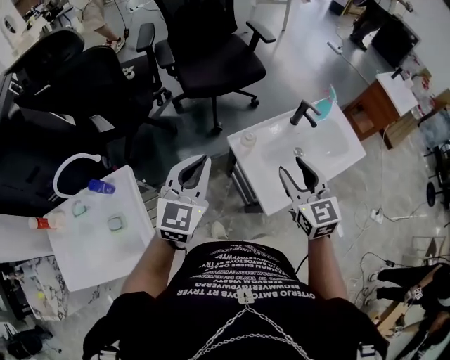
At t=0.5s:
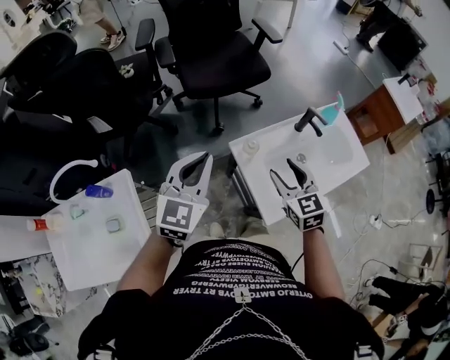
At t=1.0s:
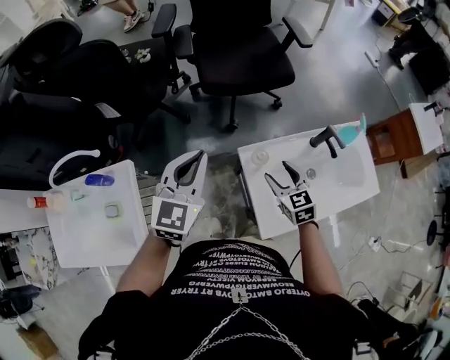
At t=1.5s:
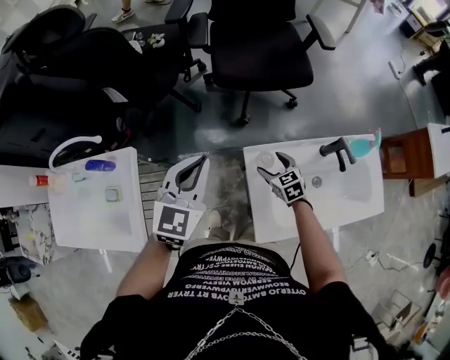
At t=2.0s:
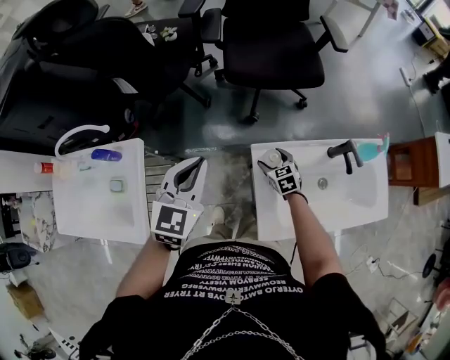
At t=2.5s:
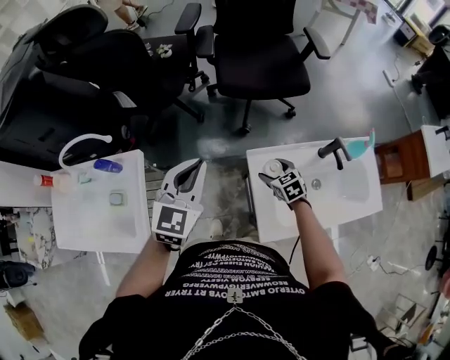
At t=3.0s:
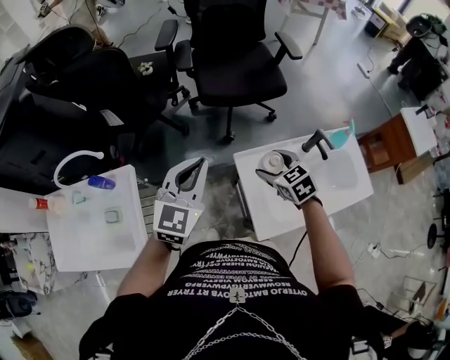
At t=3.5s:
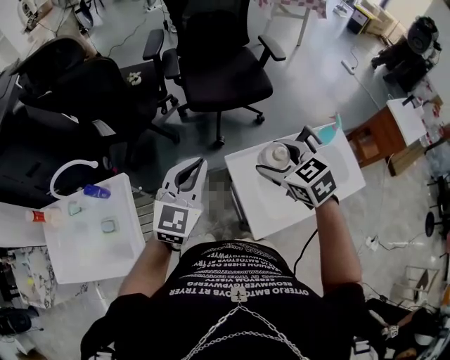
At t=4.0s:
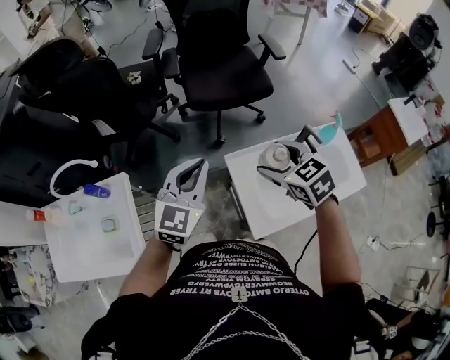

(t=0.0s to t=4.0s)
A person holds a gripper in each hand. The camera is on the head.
t=0.0s - t=2.0s: The left gripper ends up roughly 10 cm from where it was, and rotates about 20 degrees. The right gripper is displaced downward by some 35 cm, changes its angle by about 40 degrees, and opens.
t=2.0s - t=4.0s: The right gripper goes about 35 cm upward, while the left gripper shifts about 5 cm upward.

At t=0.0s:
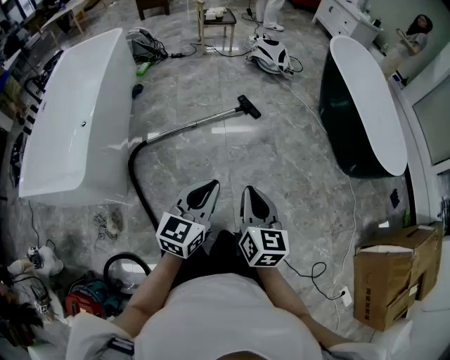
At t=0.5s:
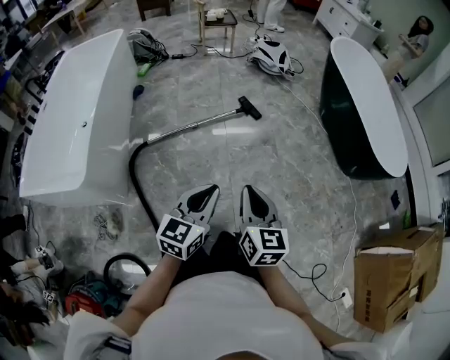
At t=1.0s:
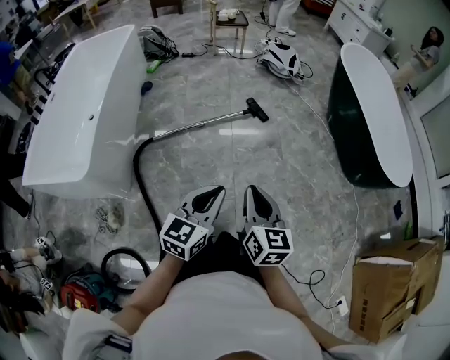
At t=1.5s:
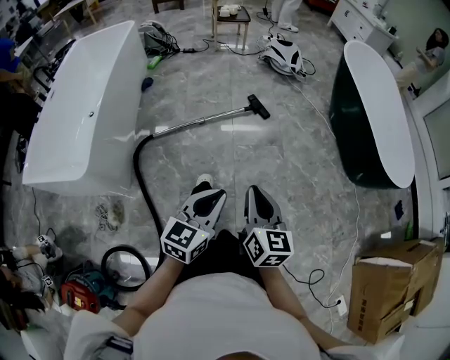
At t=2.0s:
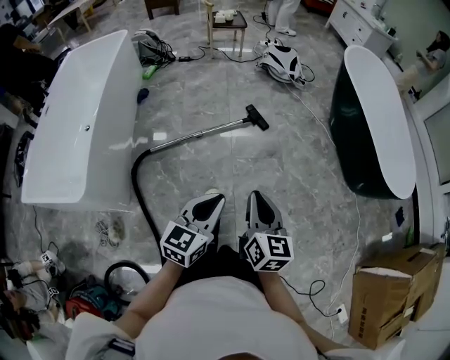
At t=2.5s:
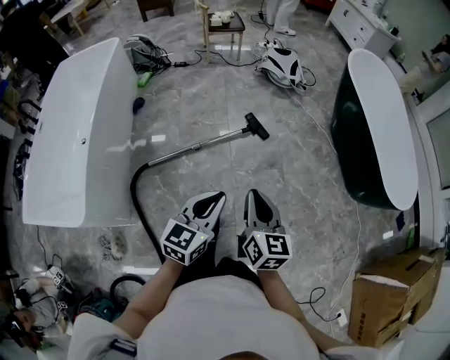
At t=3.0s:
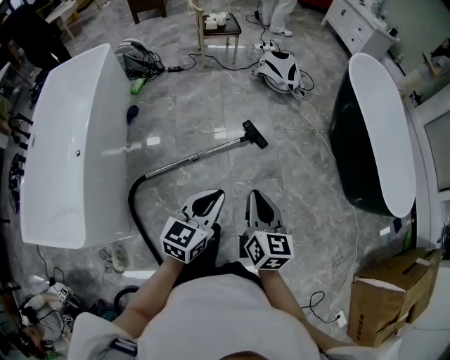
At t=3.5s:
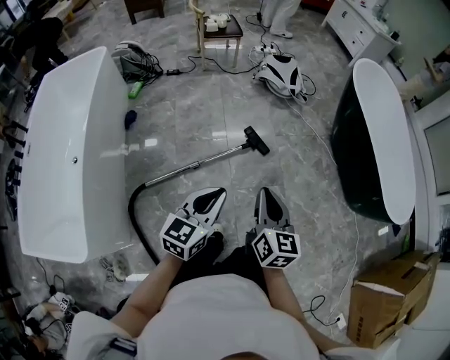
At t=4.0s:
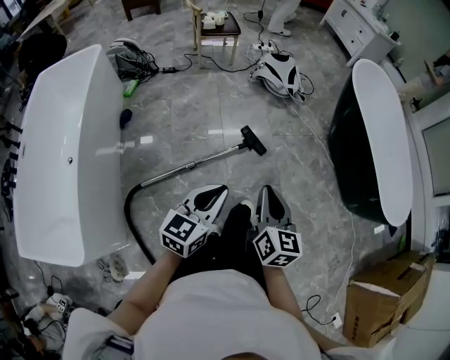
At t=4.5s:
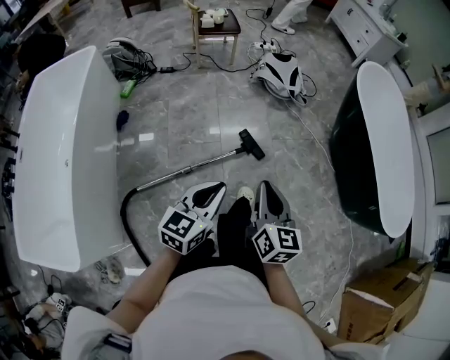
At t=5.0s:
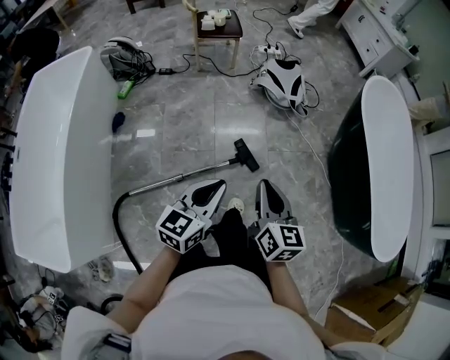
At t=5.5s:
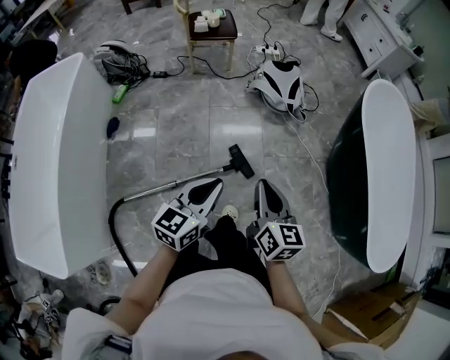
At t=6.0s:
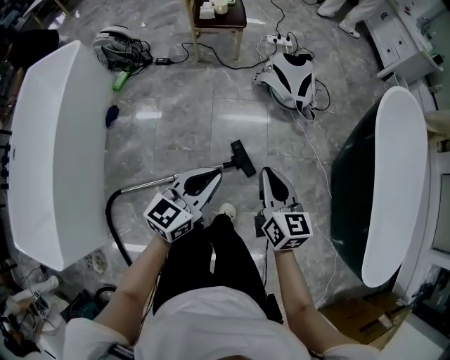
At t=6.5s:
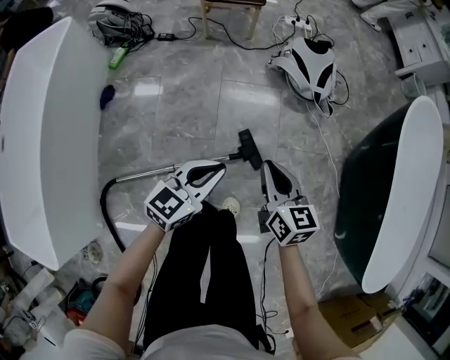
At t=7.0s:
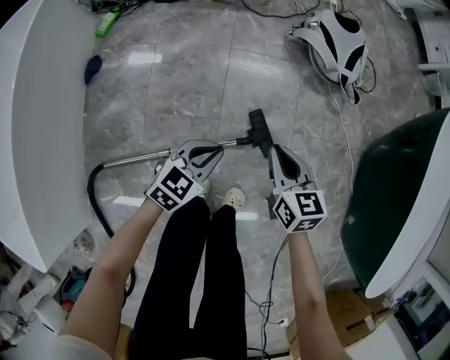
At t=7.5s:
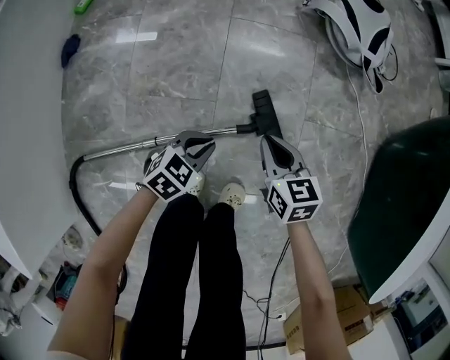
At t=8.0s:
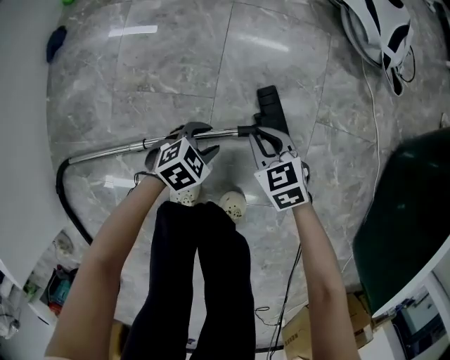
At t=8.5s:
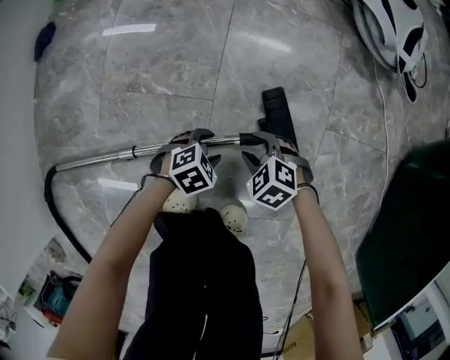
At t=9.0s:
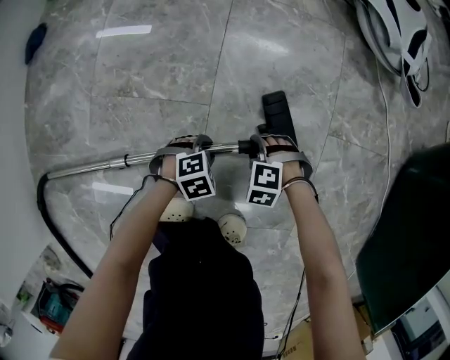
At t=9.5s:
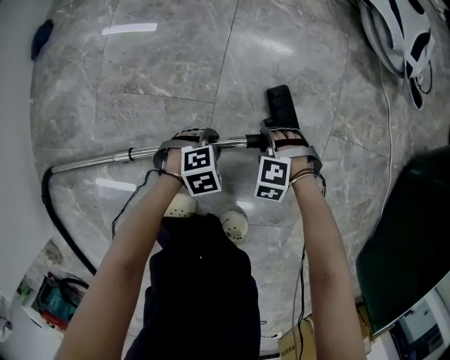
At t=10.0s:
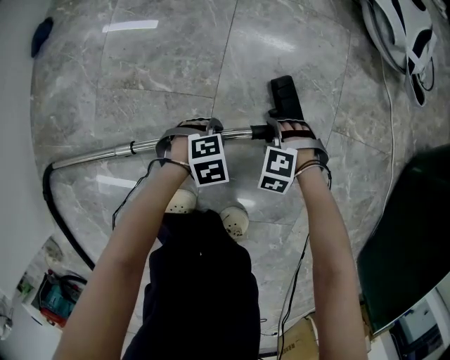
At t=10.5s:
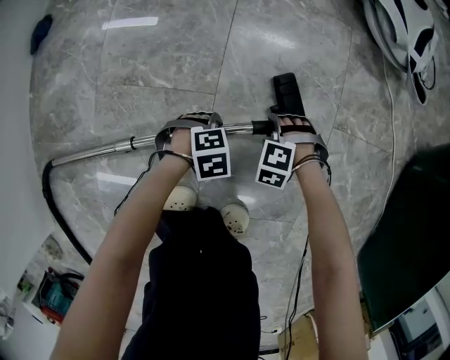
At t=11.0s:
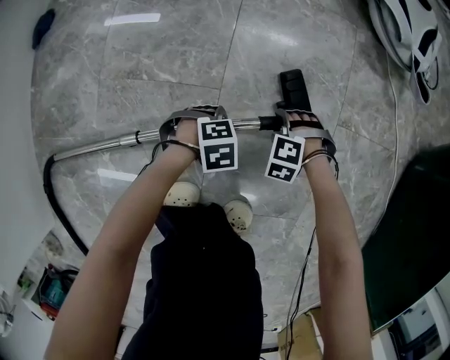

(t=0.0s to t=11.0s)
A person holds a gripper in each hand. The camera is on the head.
t=0.0s - t=2.0s: Both grippers move forward, about 10 cm.
t=2.0s - t=3.5s: The right gripper heads forward, covering about 25 cm; the left gripper heads forward and to the left, covering some 30 cm.
t=3.5s - t=5.5s: Both grippers travel together forward, approximately 30 cm.
t=5.5s - t=7.5s: Both grippers travel together downward, some 50 cm. The left gripper angles its fingers downward, by roughly 30 degrees; the right gripper turns by some 40 degrees.
t=7.5s - t=9.0s: Both grippers travel together downward, approximately 35 cm. The left gripper turns by approximately 30 degrees, and opens up, while the right gripper twists some 80 degrees counterclockwise, seen from behind, and opens up.
t=9.0s - t=11.0s: The right gripper ends up about 5 cm from where it was.

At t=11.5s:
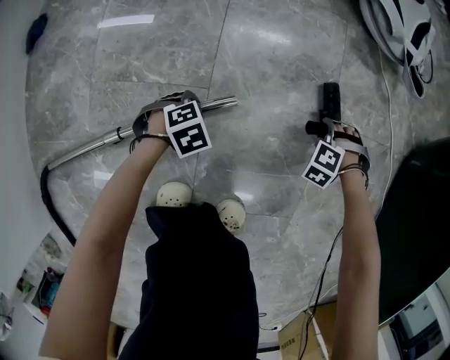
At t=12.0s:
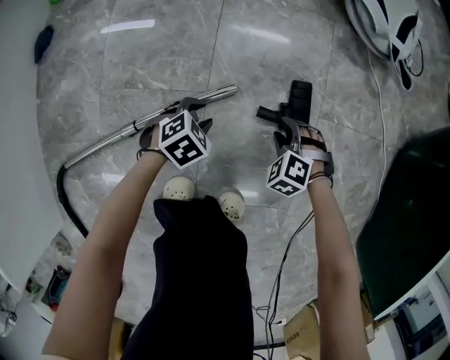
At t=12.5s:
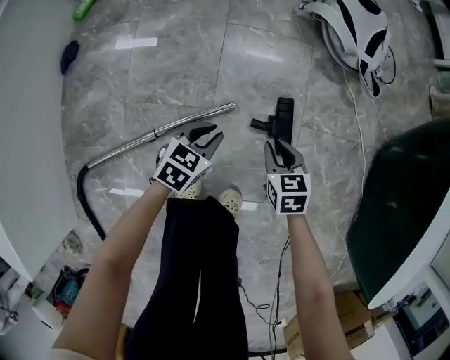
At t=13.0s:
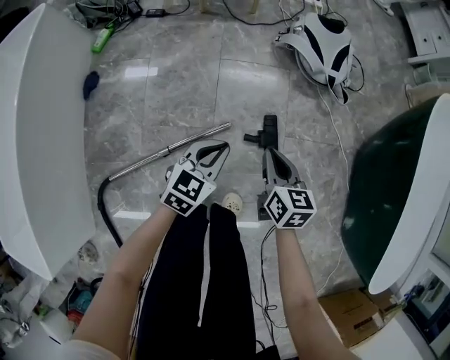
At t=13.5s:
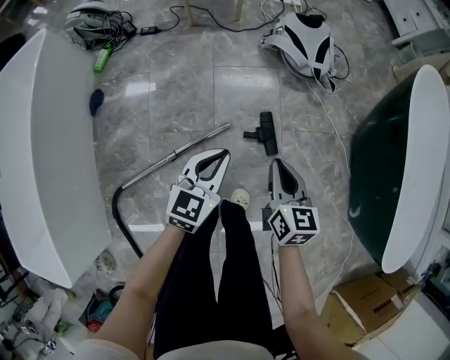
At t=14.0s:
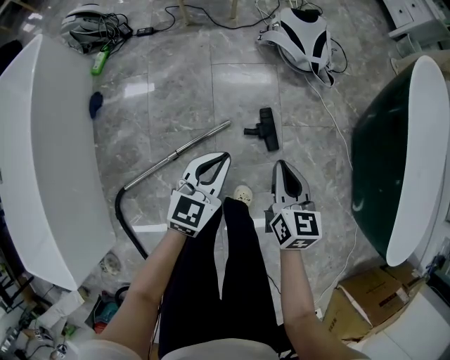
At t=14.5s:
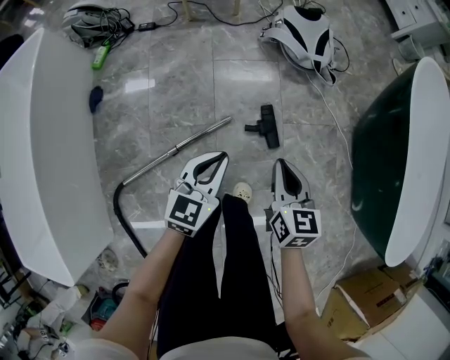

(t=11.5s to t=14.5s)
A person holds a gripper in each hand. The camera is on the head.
t=11.5s - t=13.0s: The two grippers go some 50 cm upward. The left gripper tips its fingers upward by some 50 degrees, and closes; the right gripper rolls clockwise, seen from behind, by about 100 degrees, and closes its fingers.
t=13.0s - t=14.5s: The two grippers go some 15 cm upward and backward.

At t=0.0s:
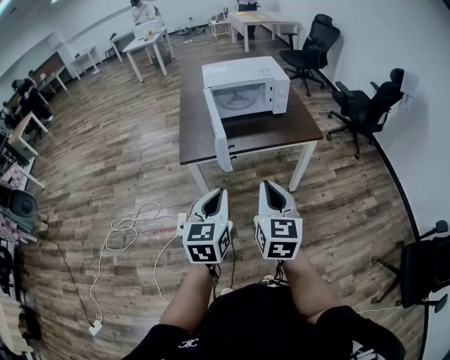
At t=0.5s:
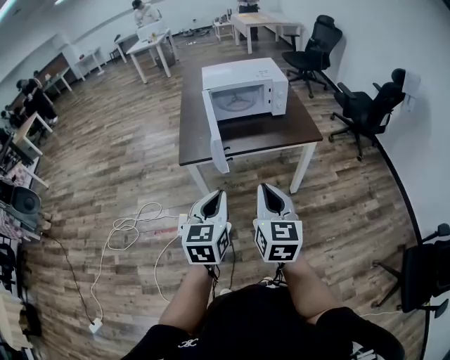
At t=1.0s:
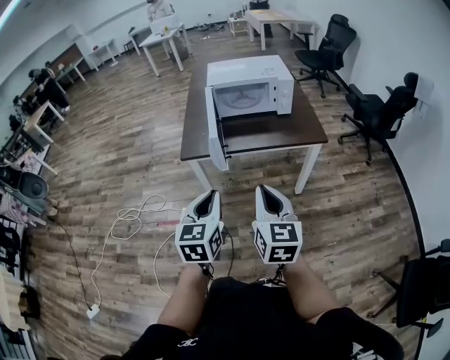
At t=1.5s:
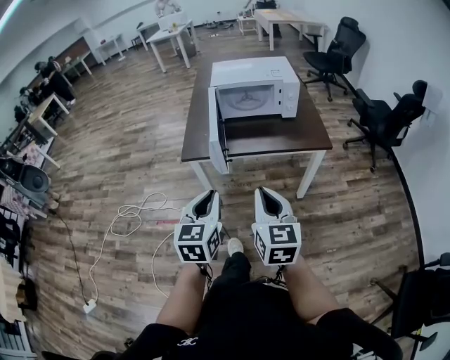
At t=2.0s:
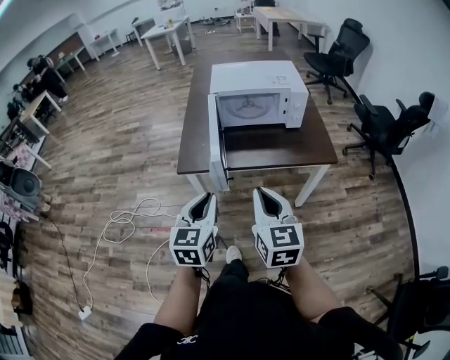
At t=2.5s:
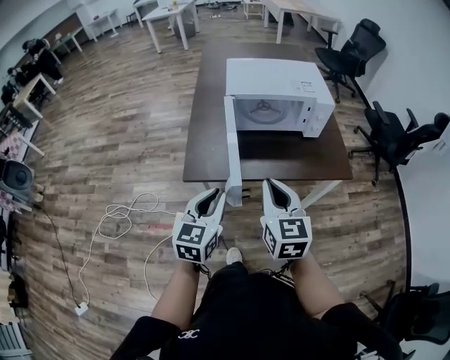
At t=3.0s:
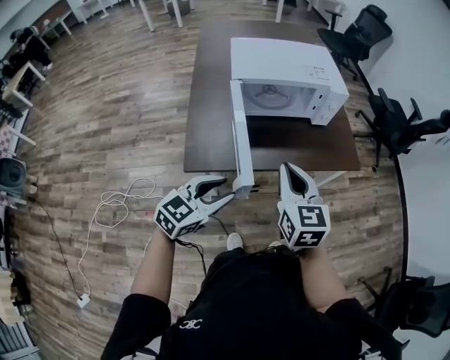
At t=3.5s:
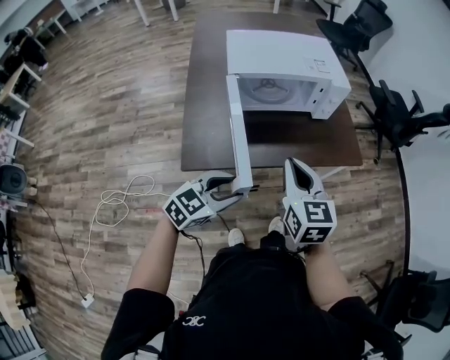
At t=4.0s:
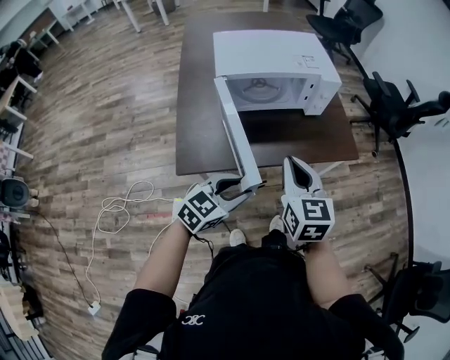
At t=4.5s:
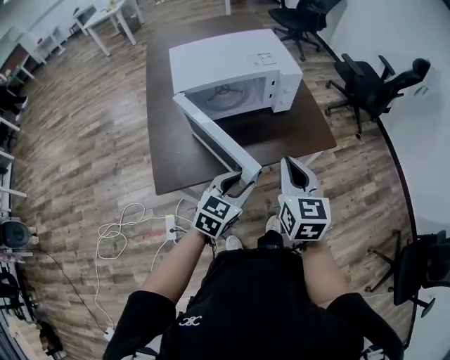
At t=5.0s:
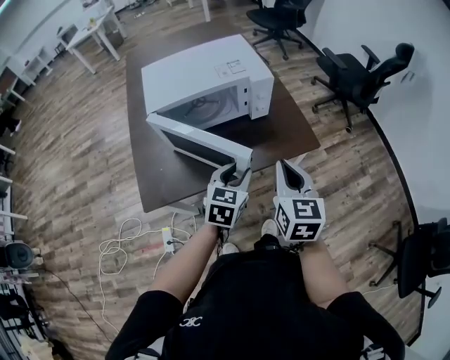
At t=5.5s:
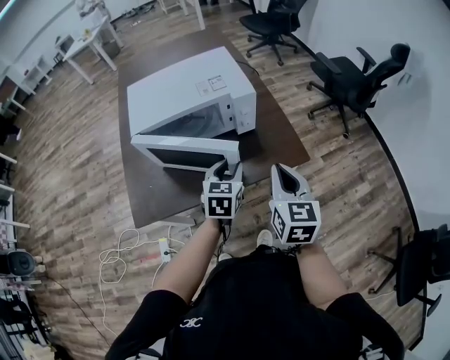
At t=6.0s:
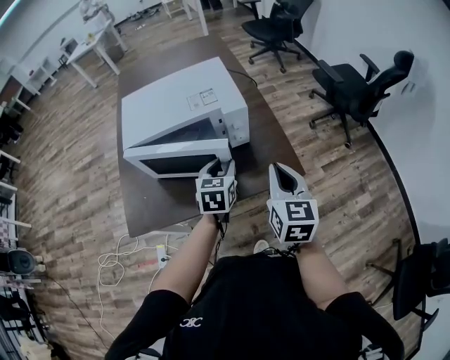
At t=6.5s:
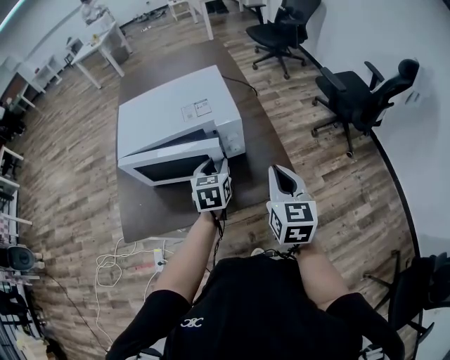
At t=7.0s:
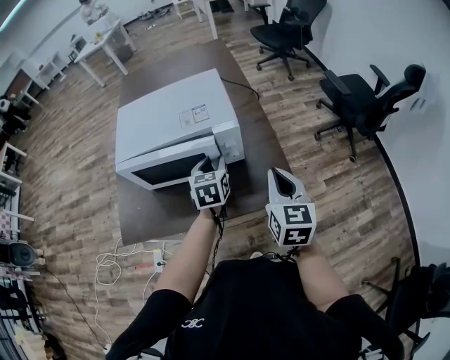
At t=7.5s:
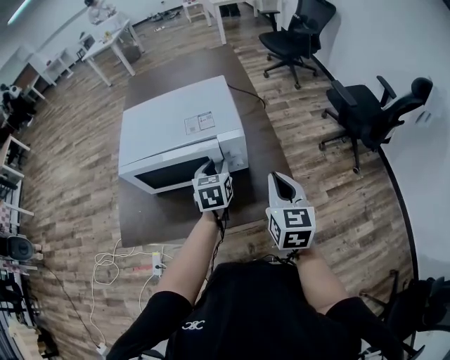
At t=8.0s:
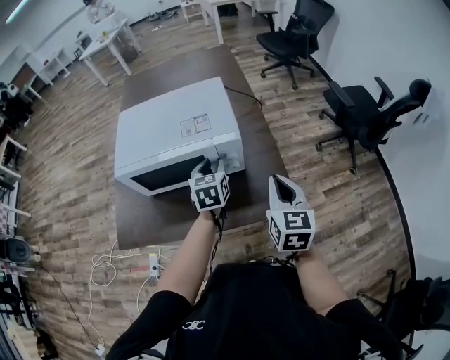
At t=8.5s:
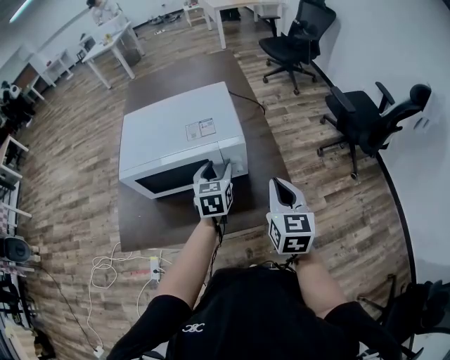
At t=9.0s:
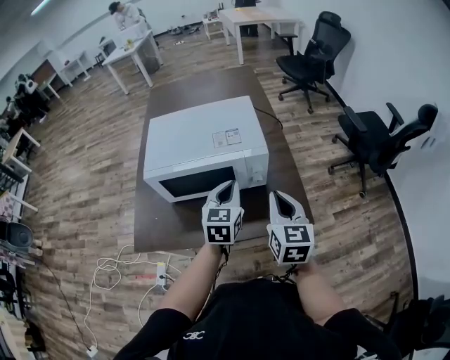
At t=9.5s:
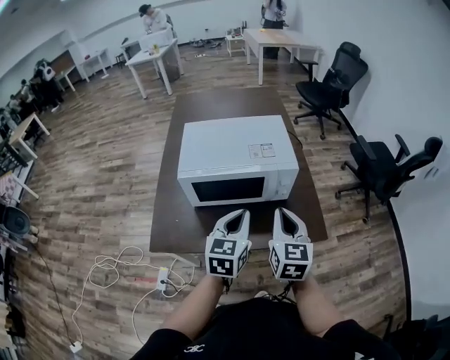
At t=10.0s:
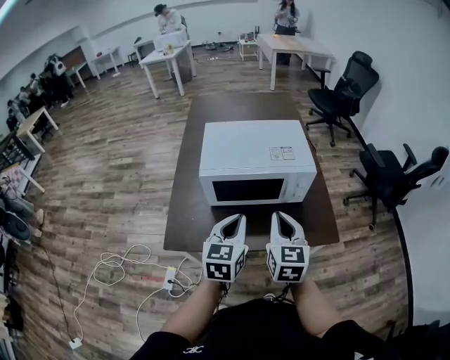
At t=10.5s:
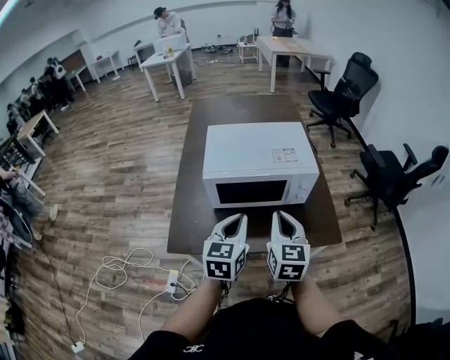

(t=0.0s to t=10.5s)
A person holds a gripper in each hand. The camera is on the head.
t=0.0s - t=2.0s: Both grippers travel together forward, about 10 cm.
t=2.0s - t=4.0s: The left gripper moves roughly 20 cm, rotates approximately 50 degrees, and opens. The right gripper shifts by approximately 20 cm.
t=4.0s - t=6.5s: The right gripper travels to the right and forward by roughly 35 cm, while the left gripper travels forward and to the right by approximately 35 cm, and swivels about 40 degrees.
t=6.5s - t=8.5s: The two grippers go some 5 cm forward. The left gripper opens up.
t=8.5s - t=10.5s: The left gripper shifts some 30 cm backward, to the left and upward, and closes its fingers, while the right gripper goes roughly 25 cm to the left.
